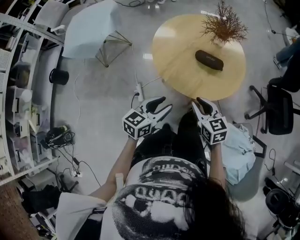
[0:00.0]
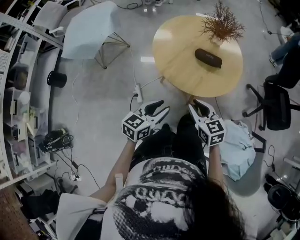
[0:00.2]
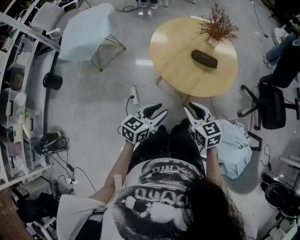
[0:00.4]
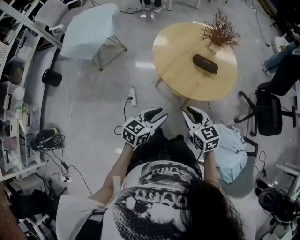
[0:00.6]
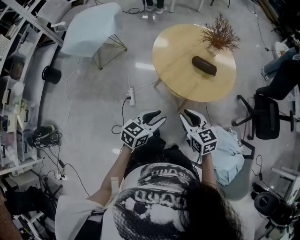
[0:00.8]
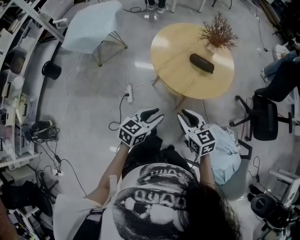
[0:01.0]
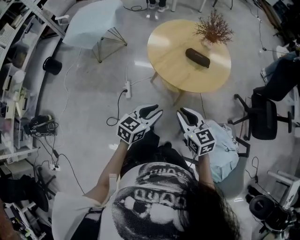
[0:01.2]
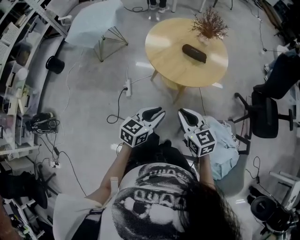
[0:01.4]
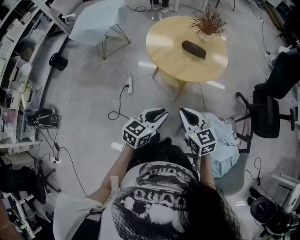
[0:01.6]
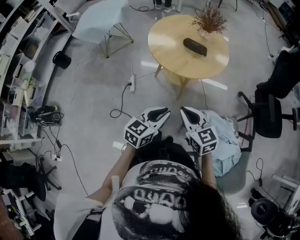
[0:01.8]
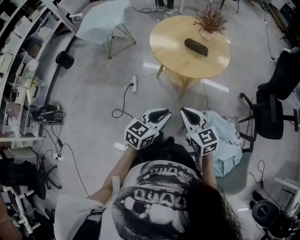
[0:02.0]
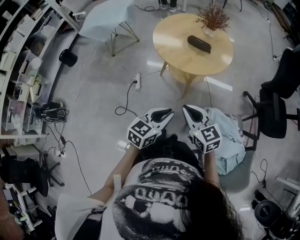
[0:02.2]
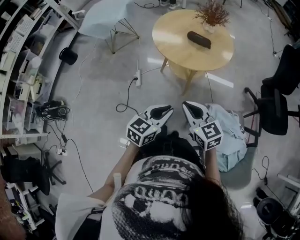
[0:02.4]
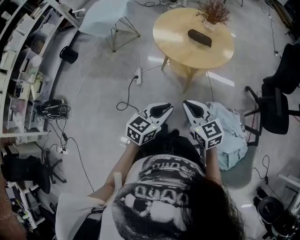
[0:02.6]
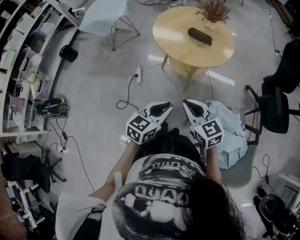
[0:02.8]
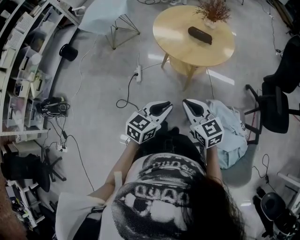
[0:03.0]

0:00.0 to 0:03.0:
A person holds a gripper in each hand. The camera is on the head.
0:00.0 to 0:01.6: The left gripper is displaced backward and to the right by about 20 cm; the right gripper shifts roughly 20 cm backward, and closes up.
0:01.6 to 0:03.0: Both grippers travel together backward, some 5 cm.

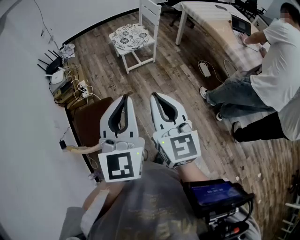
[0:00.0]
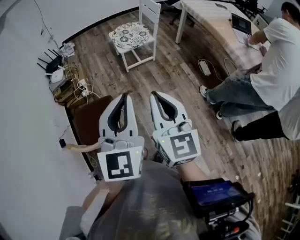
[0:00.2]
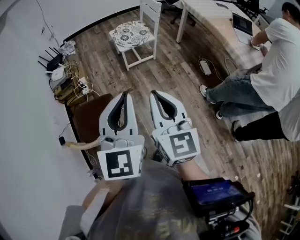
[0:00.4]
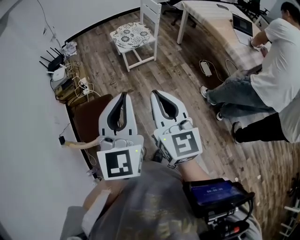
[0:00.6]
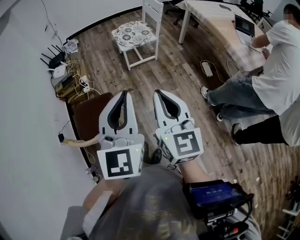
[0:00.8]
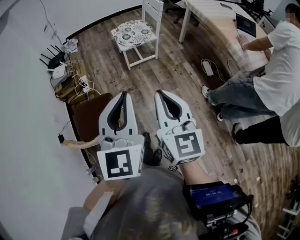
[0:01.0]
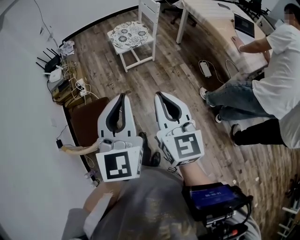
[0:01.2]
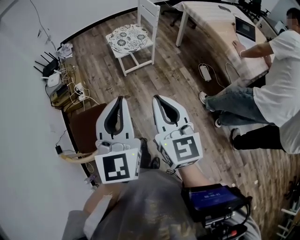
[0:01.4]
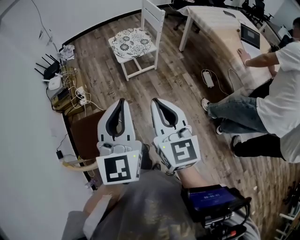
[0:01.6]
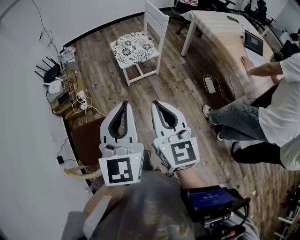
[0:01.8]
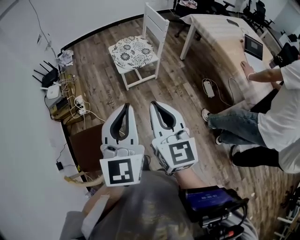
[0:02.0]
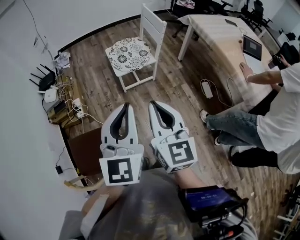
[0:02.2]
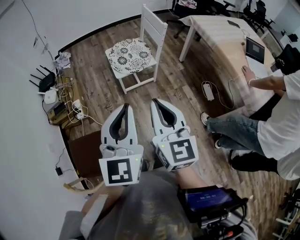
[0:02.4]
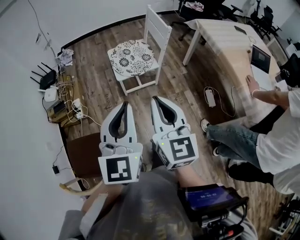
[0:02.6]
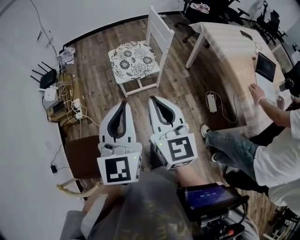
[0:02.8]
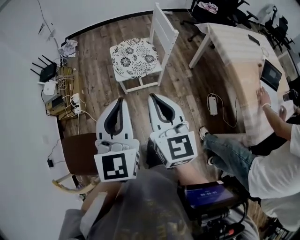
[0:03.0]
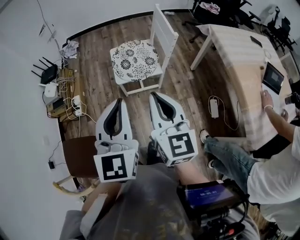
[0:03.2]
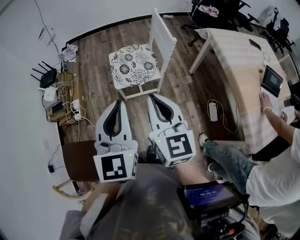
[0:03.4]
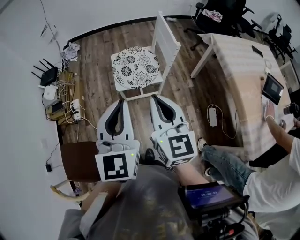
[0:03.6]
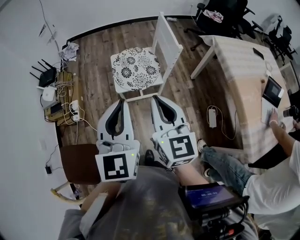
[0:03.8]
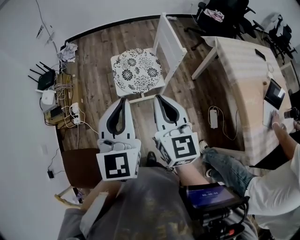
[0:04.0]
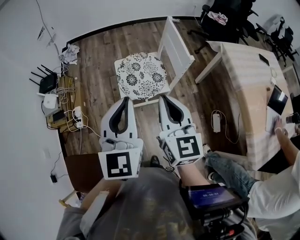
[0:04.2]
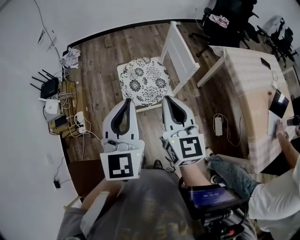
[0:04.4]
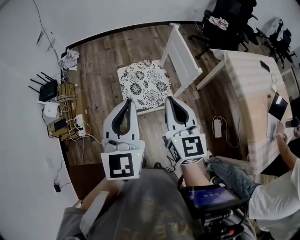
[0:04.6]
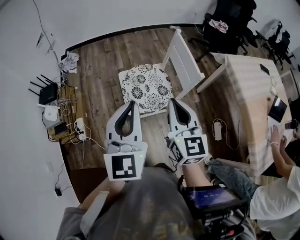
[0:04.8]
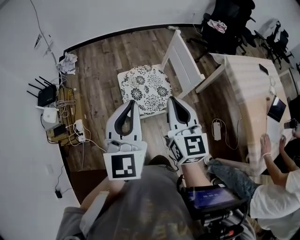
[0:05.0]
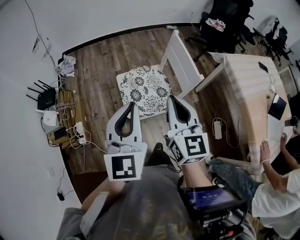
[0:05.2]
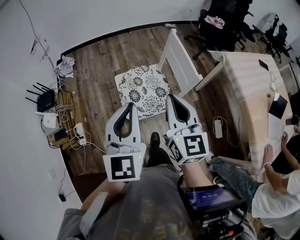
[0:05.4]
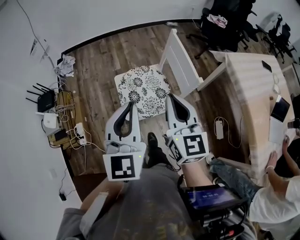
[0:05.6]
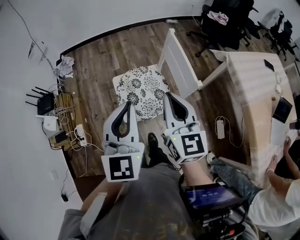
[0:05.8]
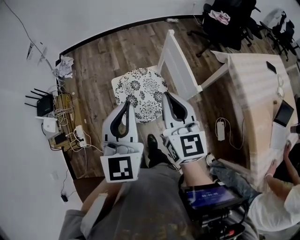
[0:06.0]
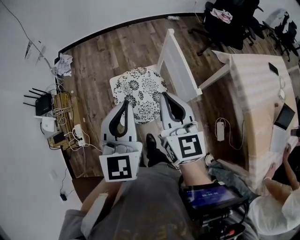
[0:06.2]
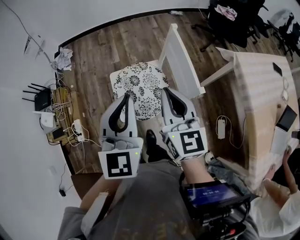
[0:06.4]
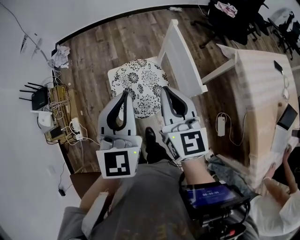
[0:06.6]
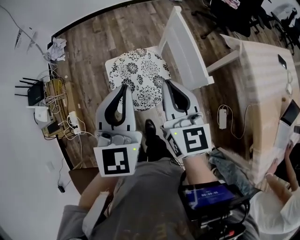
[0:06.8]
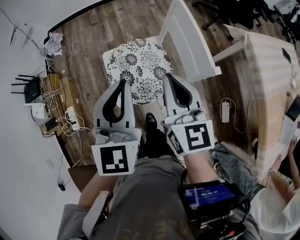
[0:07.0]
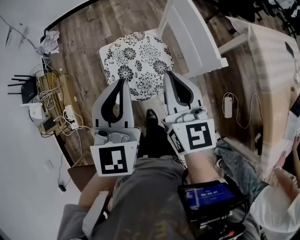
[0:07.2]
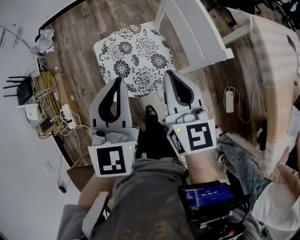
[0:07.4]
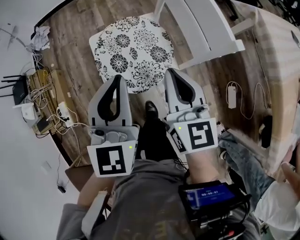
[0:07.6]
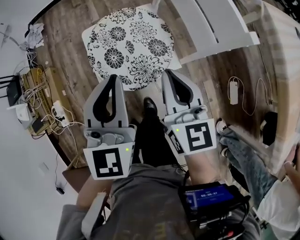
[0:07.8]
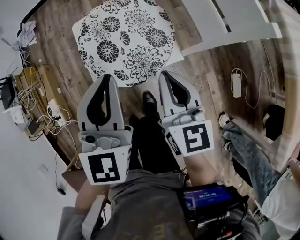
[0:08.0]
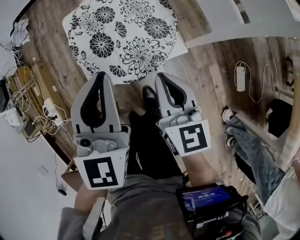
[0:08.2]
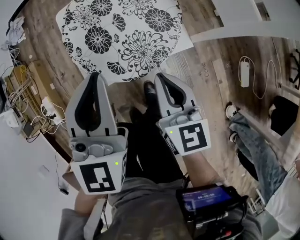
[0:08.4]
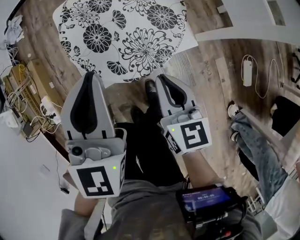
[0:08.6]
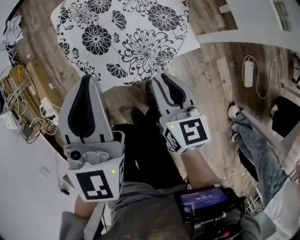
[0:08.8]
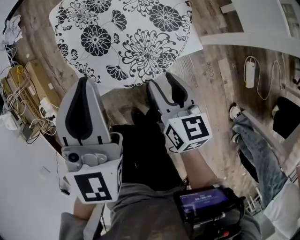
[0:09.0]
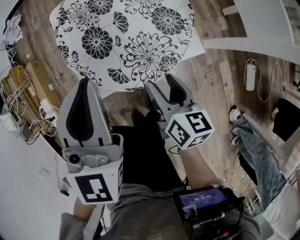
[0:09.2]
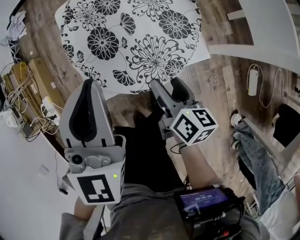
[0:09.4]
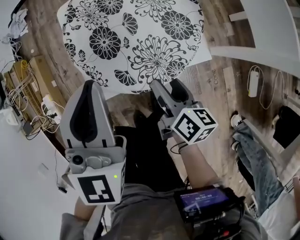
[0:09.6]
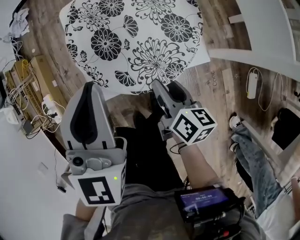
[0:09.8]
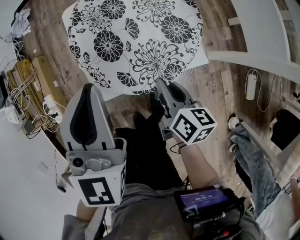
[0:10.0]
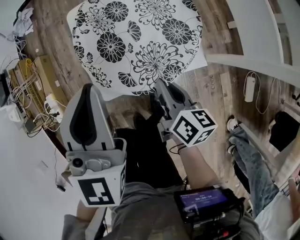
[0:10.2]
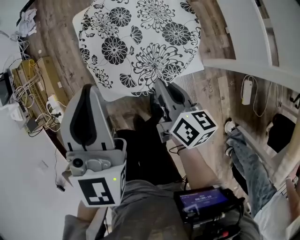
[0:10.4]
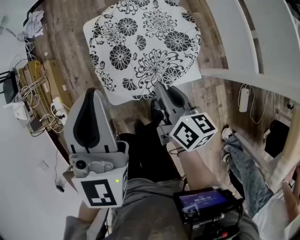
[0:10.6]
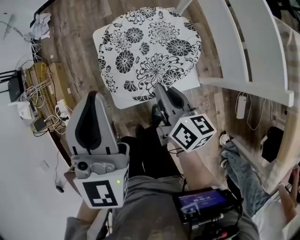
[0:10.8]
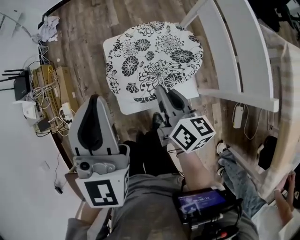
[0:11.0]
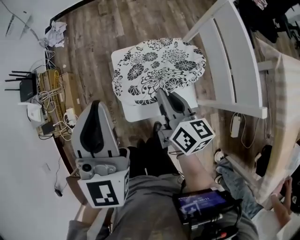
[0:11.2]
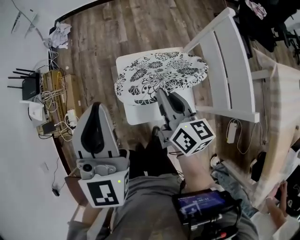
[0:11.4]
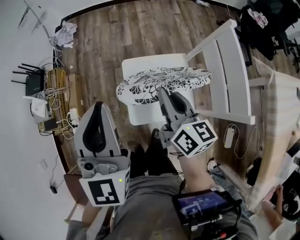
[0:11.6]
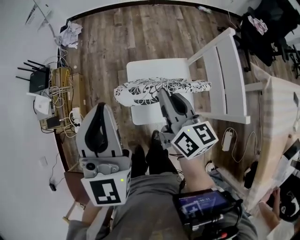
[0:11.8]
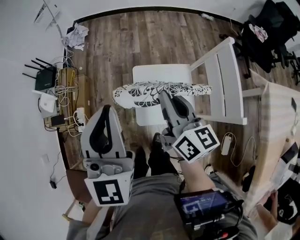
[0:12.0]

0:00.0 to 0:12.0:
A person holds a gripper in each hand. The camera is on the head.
0:00.0 to 0:01.6: The grippers both shift forward by approximately 10 cm.
0:01.6 to 0:03.0: Both grippers move forward, roughly 30 cm.
0:03.0 to 0:04.4: Both grippers travel together forward, approximately 20 cm.
0:04.4 to 0:06.0: Both grippers move forward, roughly 15 cm.
0:06.0 to 0:07.6: The grippers both shift downward by about 20 cm.
0:07.6 to 0:09.0: The left gripper goes approximately 15 cm downward. The right gripper heads downward, covering roughly 30 cm, rotates some 30 degrees, and opens up.
0:09.0 to 0:10.4: The left gripper is displaced upward by about 5 cm; the right gripper changes place by some 5 cm, and closes.
0:10.4 to 0:12.0: The left gripper moves upward and to the left, approximately 30 cm, and rotates some 20 degrees; the right gripper shifts roughly 35 cm upward, and rotates roughly 30 degrees.

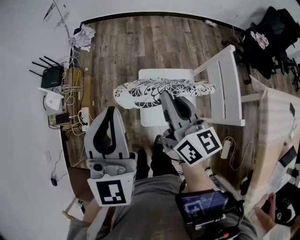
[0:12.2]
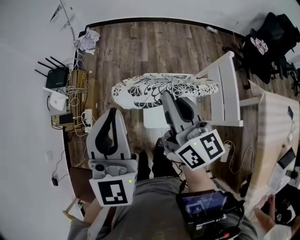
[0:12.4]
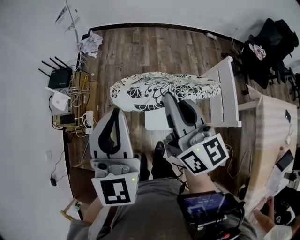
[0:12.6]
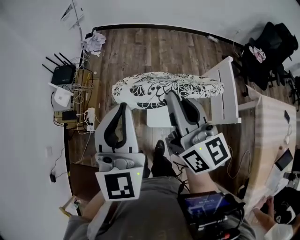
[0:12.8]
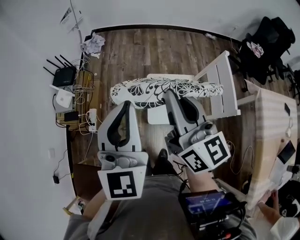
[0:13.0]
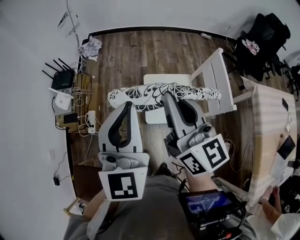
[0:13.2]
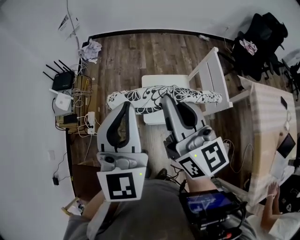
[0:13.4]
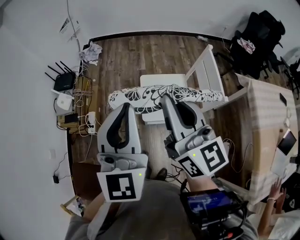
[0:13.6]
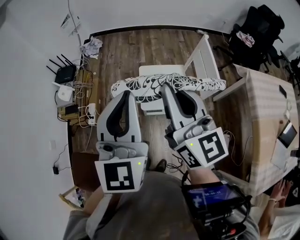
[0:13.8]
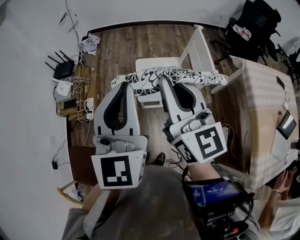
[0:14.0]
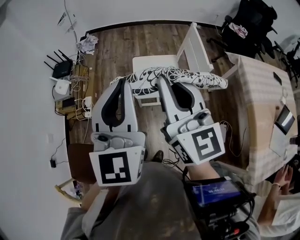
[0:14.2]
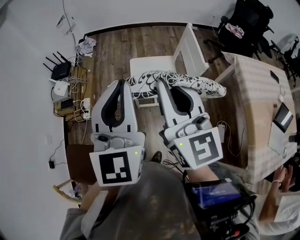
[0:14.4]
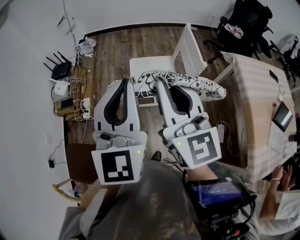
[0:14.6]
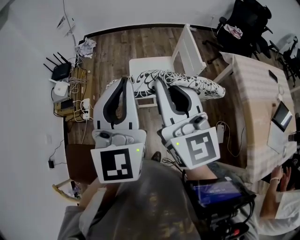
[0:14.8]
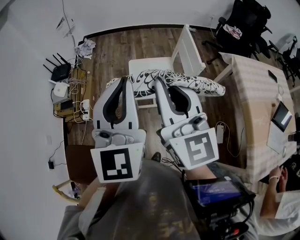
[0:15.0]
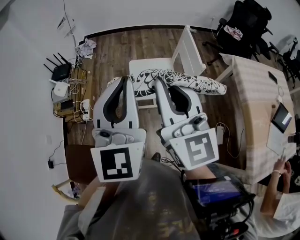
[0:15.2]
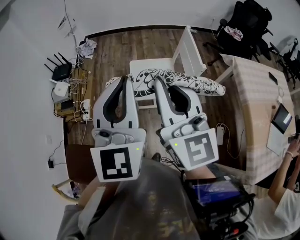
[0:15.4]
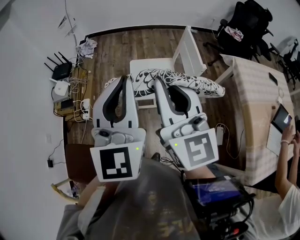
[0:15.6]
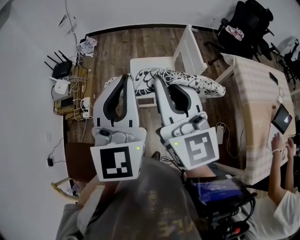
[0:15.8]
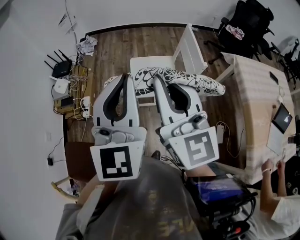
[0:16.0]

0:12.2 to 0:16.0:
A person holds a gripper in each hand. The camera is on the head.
0:12.2 to 0:13.4: The left gripper moves backward and upward, approximately 15 cm; the right gripper moves upward and backward, some 20 cm.
0:13.4 to 0:14.8: The left gripper moves backward and to the right, approximately 20 cm; the right gripper goes about 20 cm backward.
0:14.8 to 0:16.0: The two grippers keep their place.

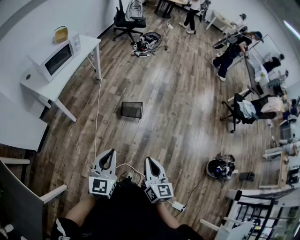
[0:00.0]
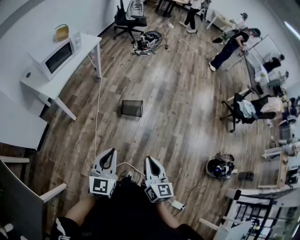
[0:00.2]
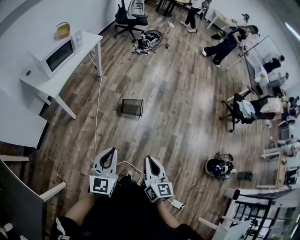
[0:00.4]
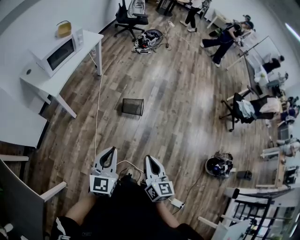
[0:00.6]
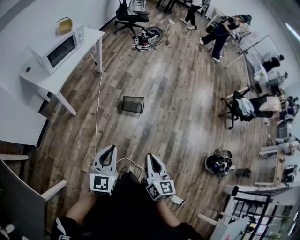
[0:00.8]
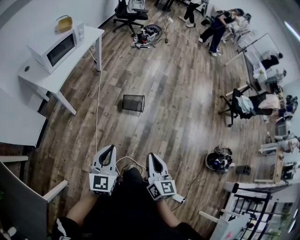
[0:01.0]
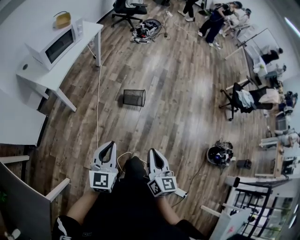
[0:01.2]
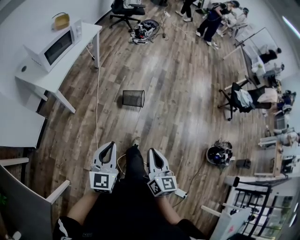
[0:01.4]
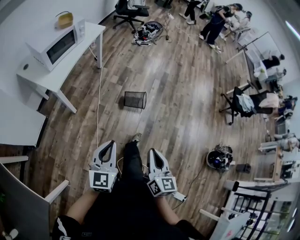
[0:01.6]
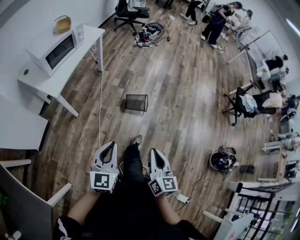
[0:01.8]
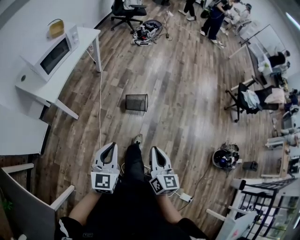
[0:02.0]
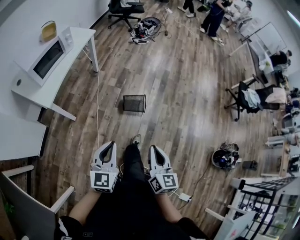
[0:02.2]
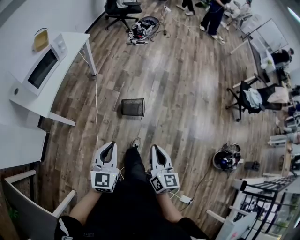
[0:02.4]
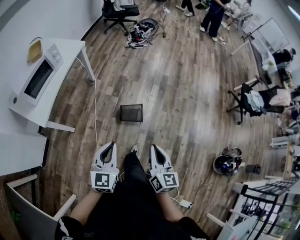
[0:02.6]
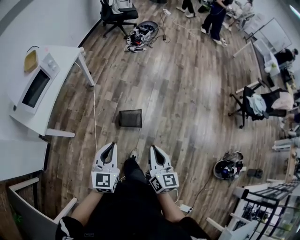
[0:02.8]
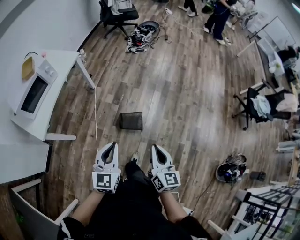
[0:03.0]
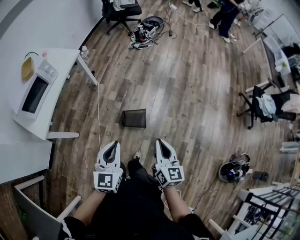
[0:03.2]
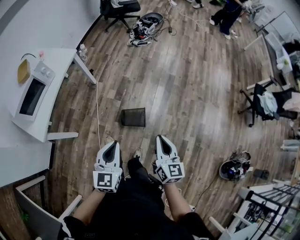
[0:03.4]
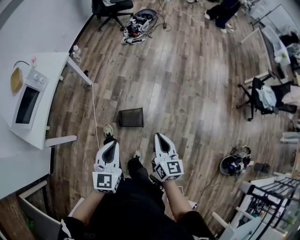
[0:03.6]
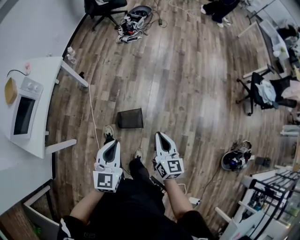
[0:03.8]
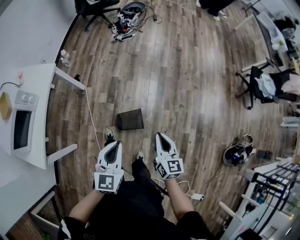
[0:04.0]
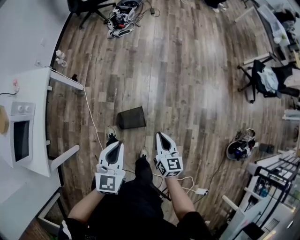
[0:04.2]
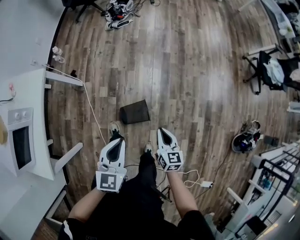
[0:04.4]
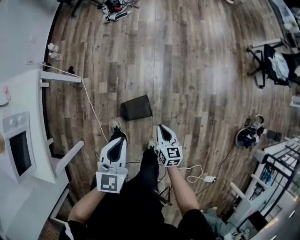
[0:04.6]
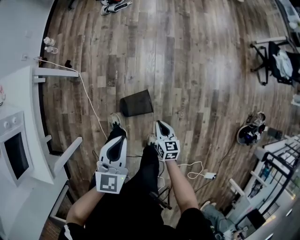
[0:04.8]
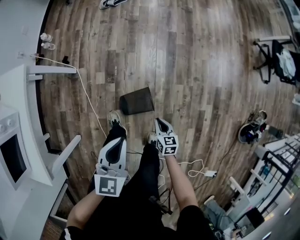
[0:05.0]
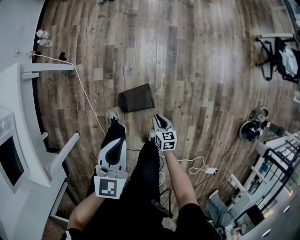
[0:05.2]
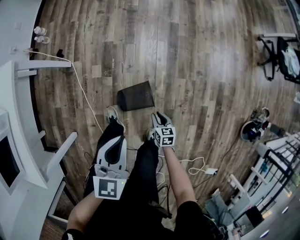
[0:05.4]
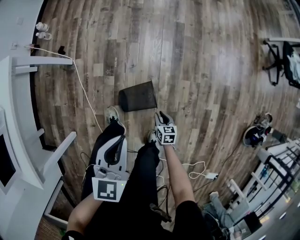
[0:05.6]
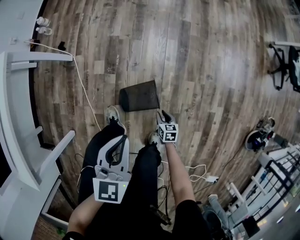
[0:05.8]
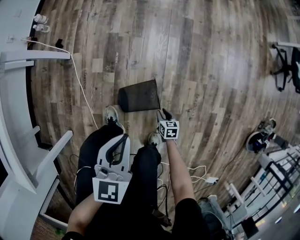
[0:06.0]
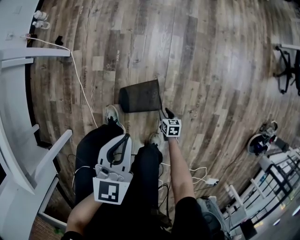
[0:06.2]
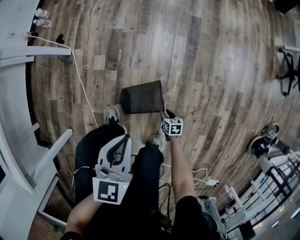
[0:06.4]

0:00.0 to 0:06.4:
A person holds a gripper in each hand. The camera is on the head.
0:00.0 to 0:01.6: Both grippers move to the left, roughly 10 cm.
0:01.6 to 0:03.2: The grippers both shift forward and to the right by about 40 cm.
0:03.2 to 0:04.8: The right gripper travels downward and forward by some 40 cm, and changes its angle by some 30 degrees. The left gripper heads forward and downward, covering about 30 cm, and turns by approximately 30 degrees.
0:04.8 to 0:06.4: The left gripper heads downward, covering approximately 25 cm, while the right gripper moves downward, about 40 cm, rotates about 30 degrees, and opens.
